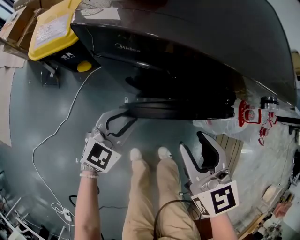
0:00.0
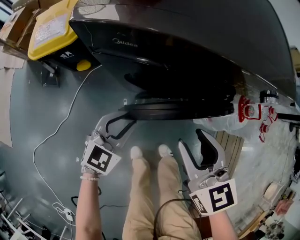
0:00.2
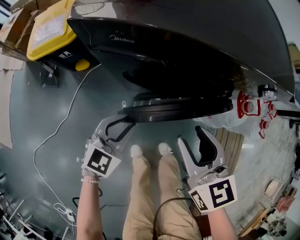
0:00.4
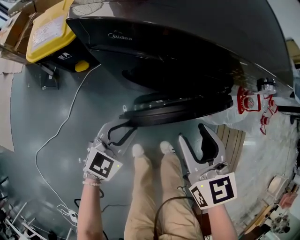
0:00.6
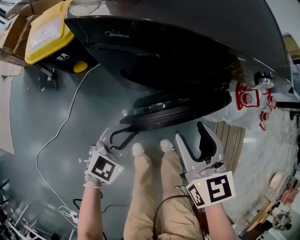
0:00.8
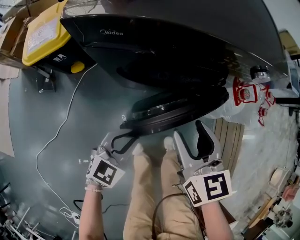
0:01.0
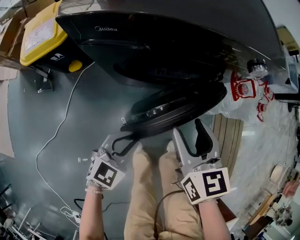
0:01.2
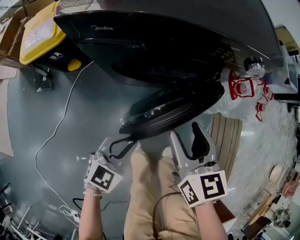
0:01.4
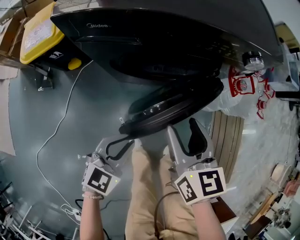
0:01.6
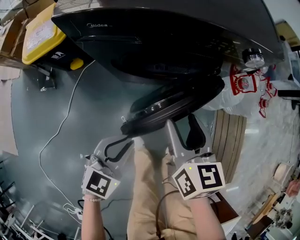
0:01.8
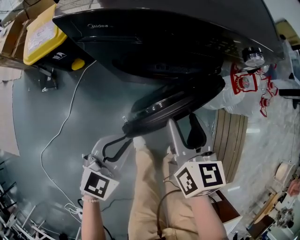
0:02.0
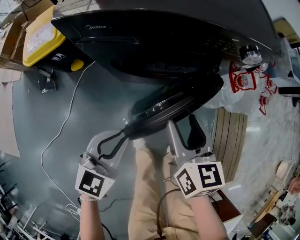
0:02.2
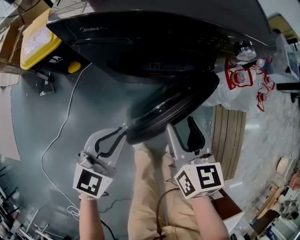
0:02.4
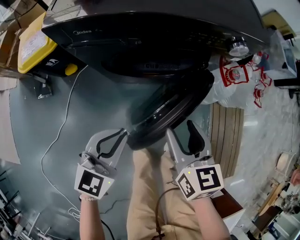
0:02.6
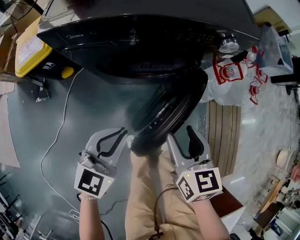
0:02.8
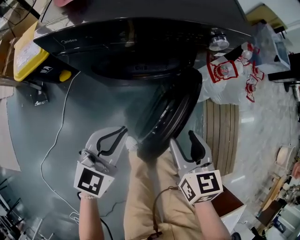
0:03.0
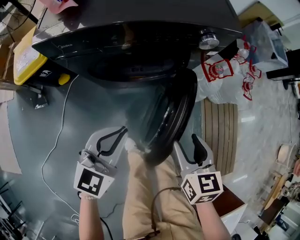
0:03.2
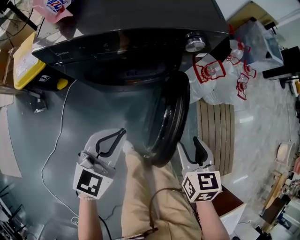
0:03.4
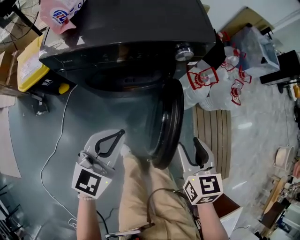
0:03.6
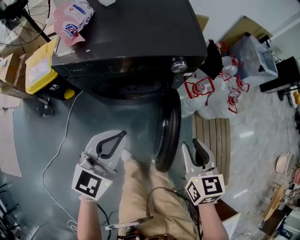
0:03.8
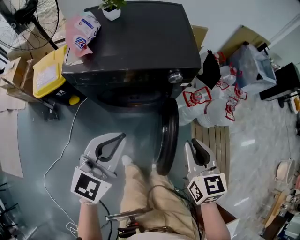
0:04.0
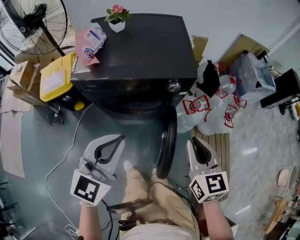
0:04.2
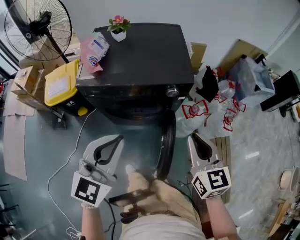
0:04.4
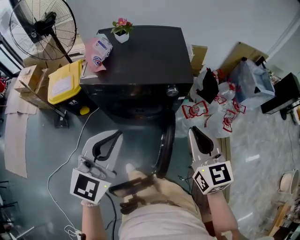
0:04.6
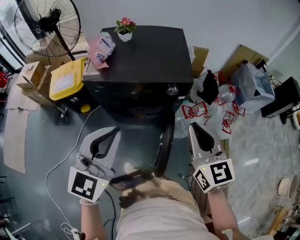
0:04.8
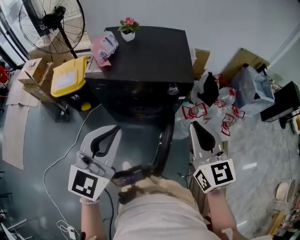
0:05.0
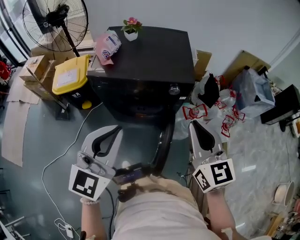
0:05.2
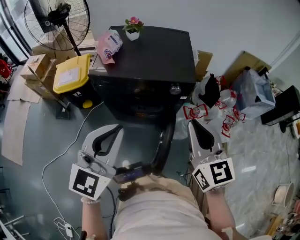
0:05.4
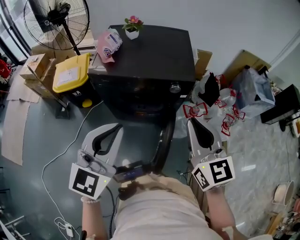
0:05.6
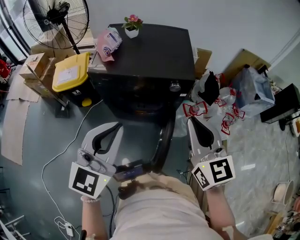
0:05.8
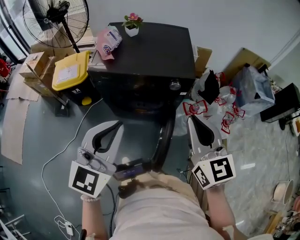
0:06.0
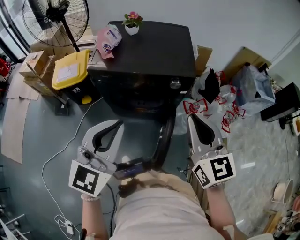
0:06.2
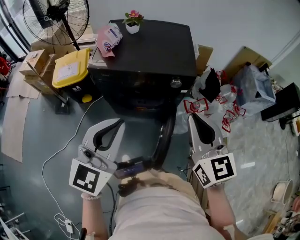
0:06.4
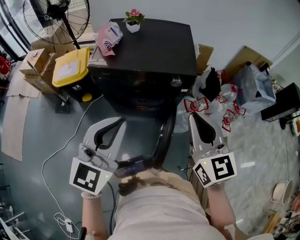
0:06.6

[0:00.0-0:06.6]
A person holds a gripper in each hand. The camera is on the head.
0:00.0 to 0:01.6: The left gripper travels backward and to the right by about 15 cm. Meanwhile the right gripper ends up approximately 5 cm from where it was, and changes its angle by approximately 20 degrees.
0:01.6 to 0:03.2: The left gripper shifts about 15 cm upward and to the right. The right gripper is displaced to the right and backward by roughly 15 cm.
0:03.2 to 0:05.0: Both grippers travel together upward, some 30 cm. The right gripper angles its fingers upward, by some 30 degrees, and closes, while the left gripper turns by approximately 20 degrees.
0:05.0 to 0:06.6: The grippers make only small movements.

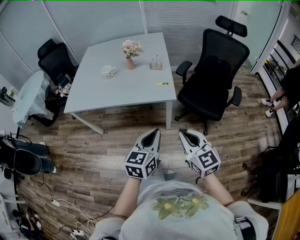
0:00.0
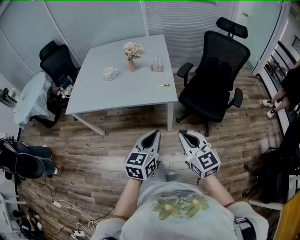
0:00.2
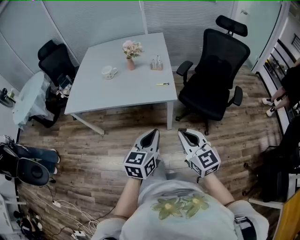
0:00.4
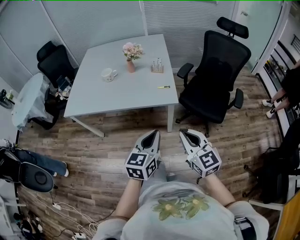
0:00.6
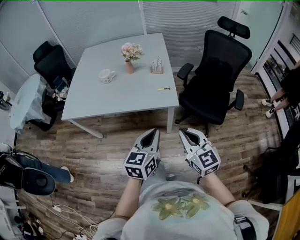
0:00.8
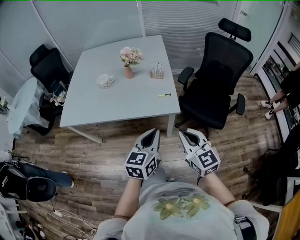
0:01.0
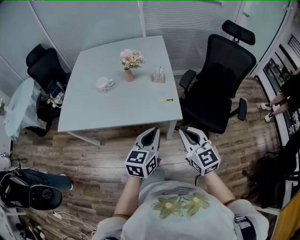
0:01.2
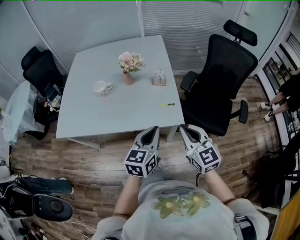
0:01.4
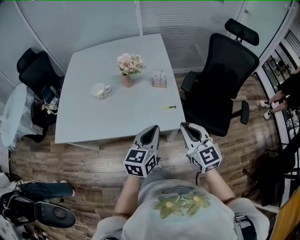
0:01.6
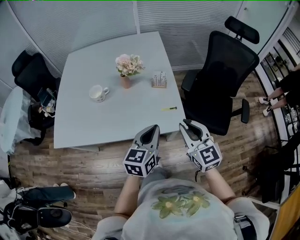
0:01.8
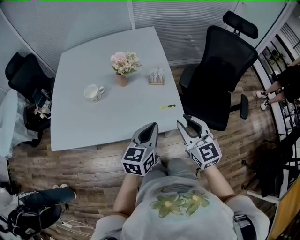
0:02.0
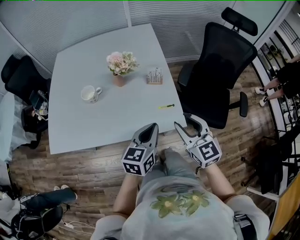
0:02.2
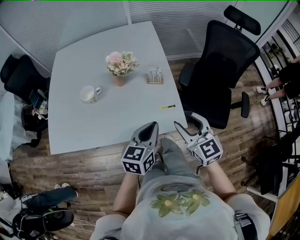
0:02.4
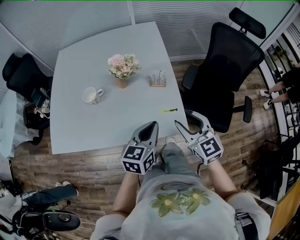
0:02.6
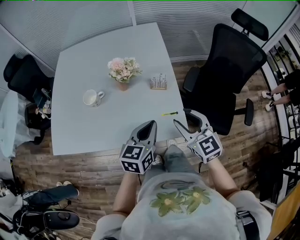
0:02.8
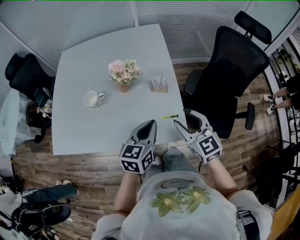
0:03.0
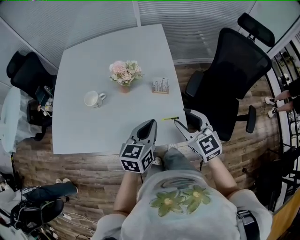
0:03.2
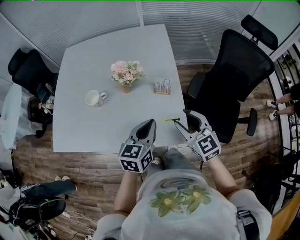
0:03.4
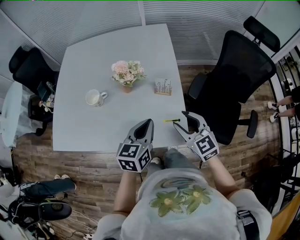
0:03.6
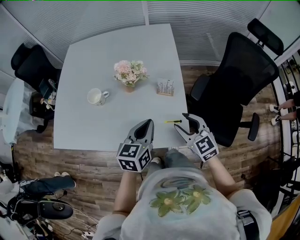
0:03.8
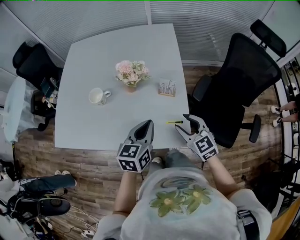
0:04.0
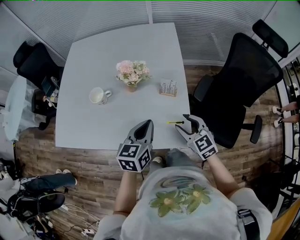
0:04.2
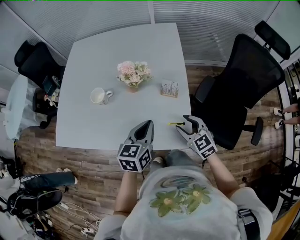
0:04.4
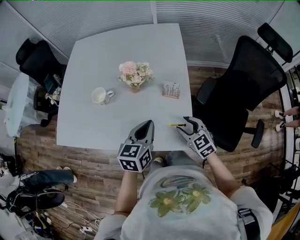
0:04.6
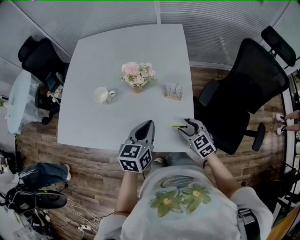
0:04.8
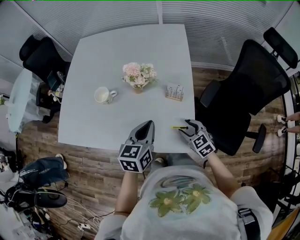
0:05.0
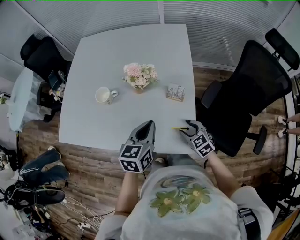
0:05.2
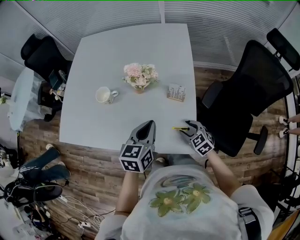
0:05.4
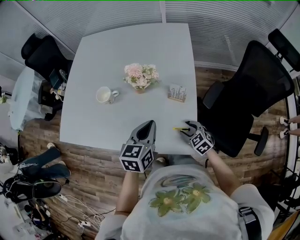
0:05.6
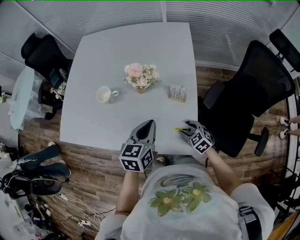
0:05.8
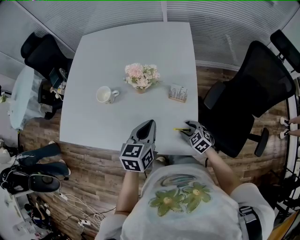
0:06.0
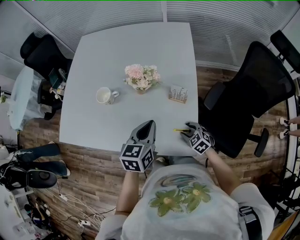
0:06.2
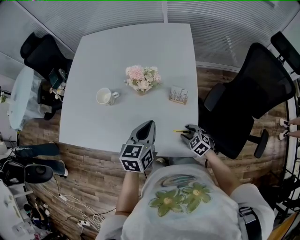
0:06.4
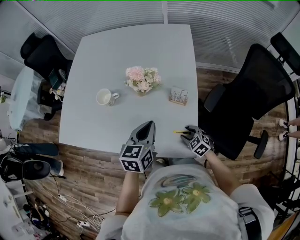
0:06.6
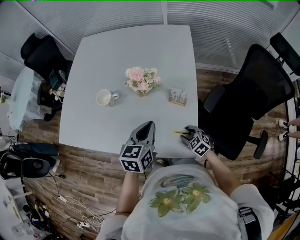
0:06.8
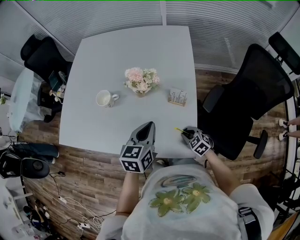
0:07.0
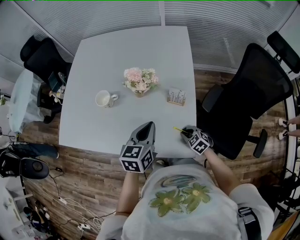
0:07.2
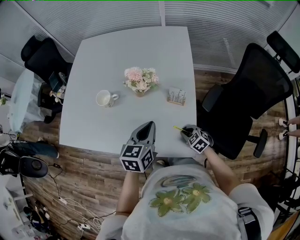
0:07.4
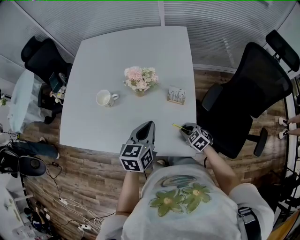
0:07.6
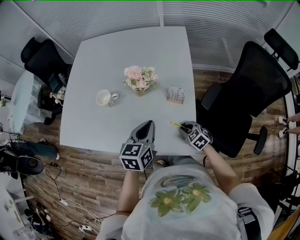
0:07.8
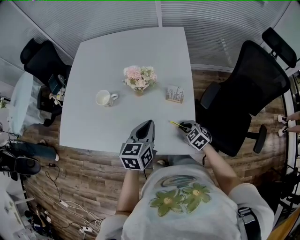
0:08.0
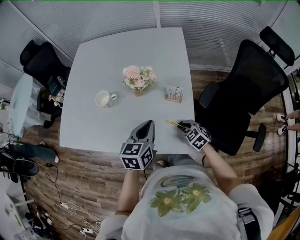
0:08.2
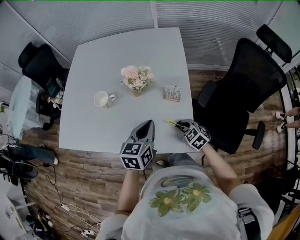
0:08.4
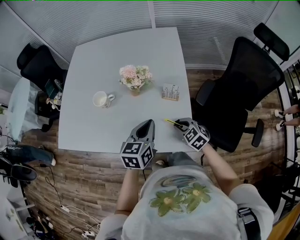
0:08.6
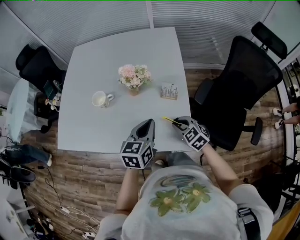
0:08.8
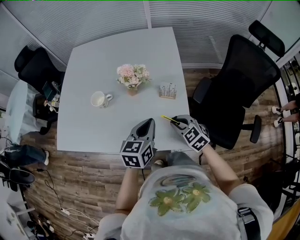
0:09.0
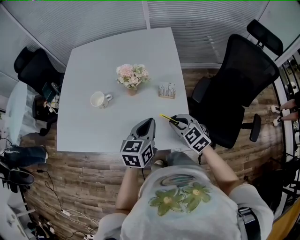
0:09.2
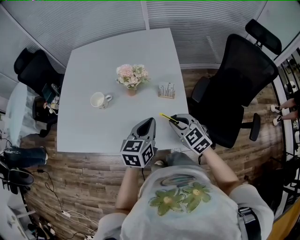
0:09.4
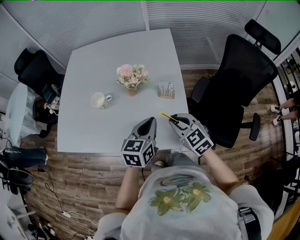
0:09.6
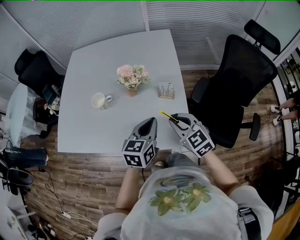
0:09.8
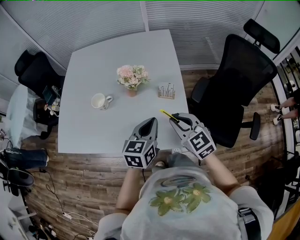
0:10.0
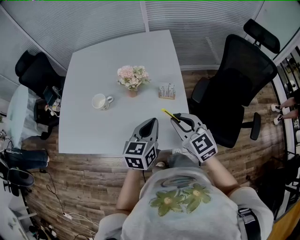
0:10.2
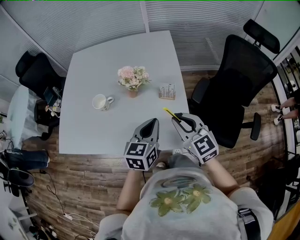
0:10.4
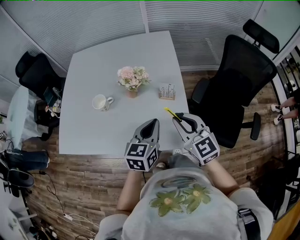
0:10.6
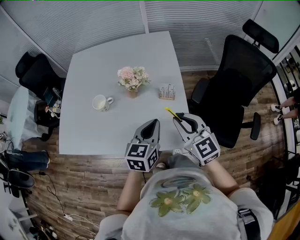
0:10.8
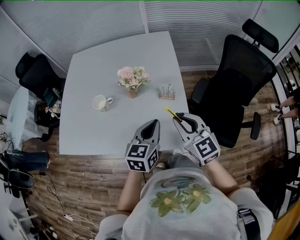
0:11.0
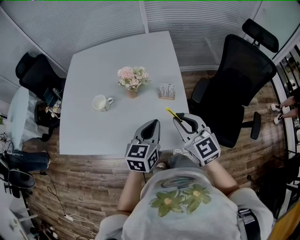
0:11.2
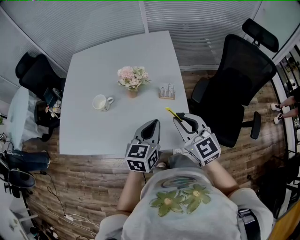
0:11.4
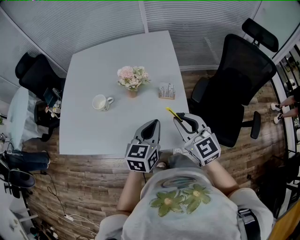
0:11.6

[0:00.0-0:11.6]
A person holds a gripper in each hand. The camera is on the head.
0:00.0 to 0:01.4: Both grippers travel together forward, approximately 25 cm.
0:01.4 to 0:02.8: The two grippers go some 15 cm forward. The right gripper opens its fingers.
0:02.8 to 0:04.4: The right gripper goes roughly 15 cm downward and forward. The left gripper is displaced forward by about 5 cm.
0:04.4 to 0:05.8: The right gripper moves downward, approximately 15 cm, and changes its angle by approximately 20 degrees.
0:05.8 to 0:07.2: The right gripper closes.
0:07.2 to 0:08.8: The right gripper heads upward, covering some 15 cm.
0:08.8 to 0:10.2: The right gripper goes approximately 15 cm upward, and turns by some 20 degrees.
0:10.2 to 0:11.6: The grippers make only small movements.

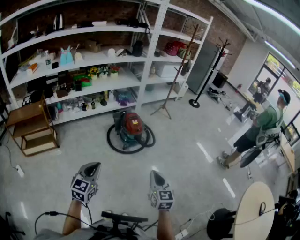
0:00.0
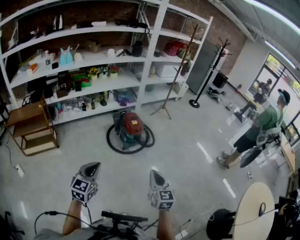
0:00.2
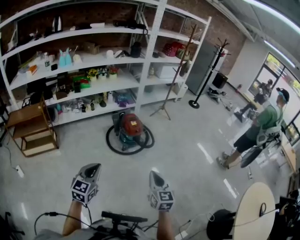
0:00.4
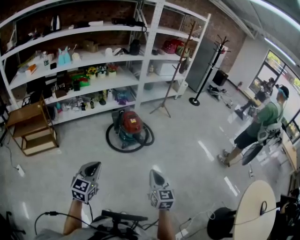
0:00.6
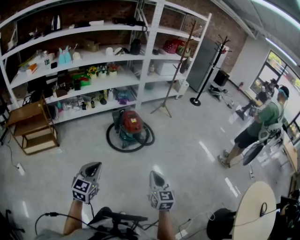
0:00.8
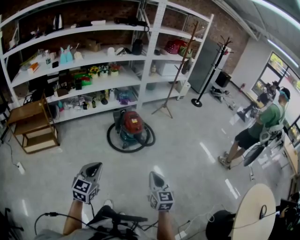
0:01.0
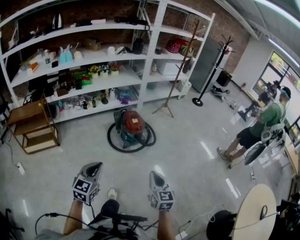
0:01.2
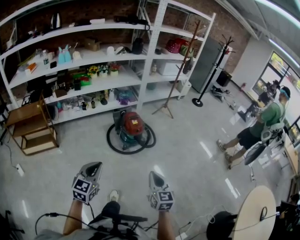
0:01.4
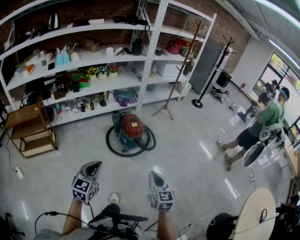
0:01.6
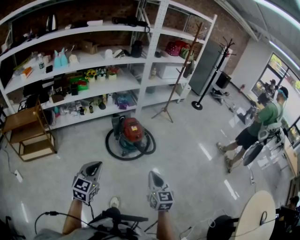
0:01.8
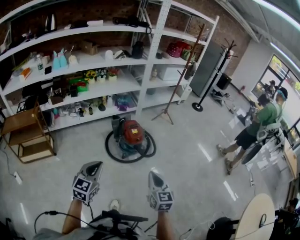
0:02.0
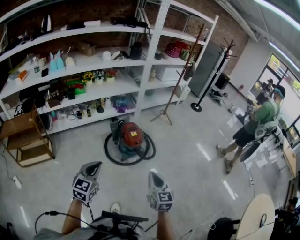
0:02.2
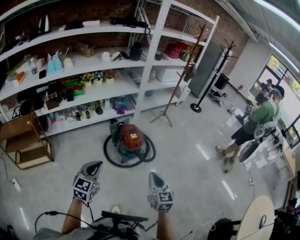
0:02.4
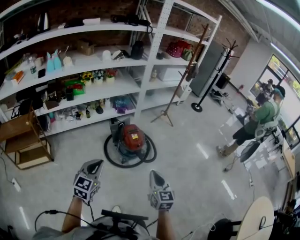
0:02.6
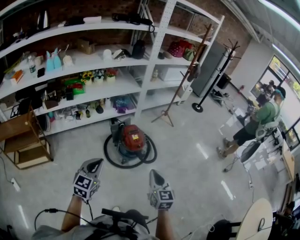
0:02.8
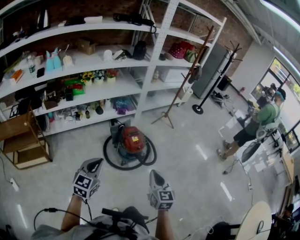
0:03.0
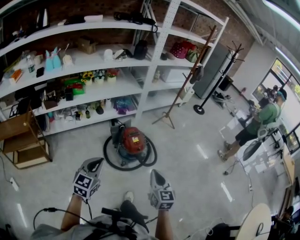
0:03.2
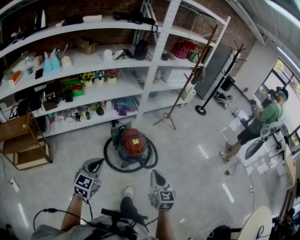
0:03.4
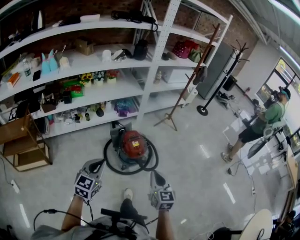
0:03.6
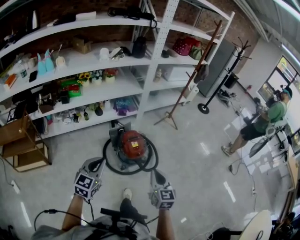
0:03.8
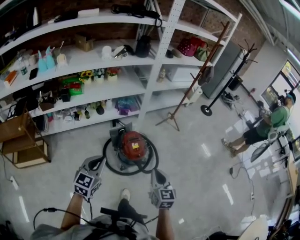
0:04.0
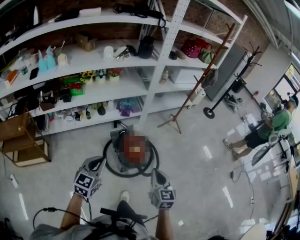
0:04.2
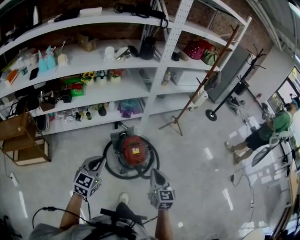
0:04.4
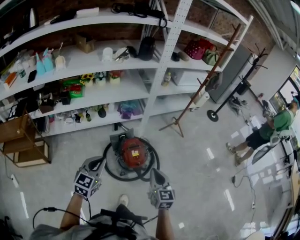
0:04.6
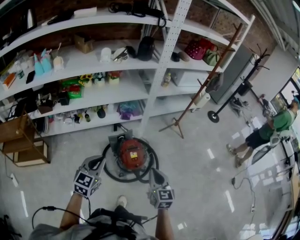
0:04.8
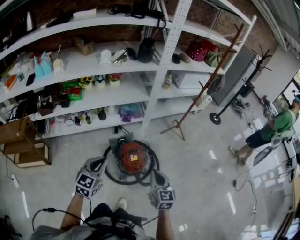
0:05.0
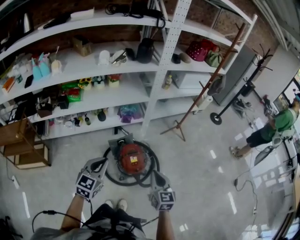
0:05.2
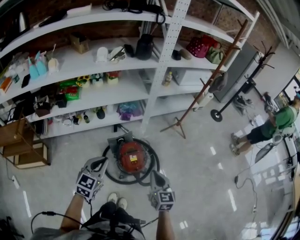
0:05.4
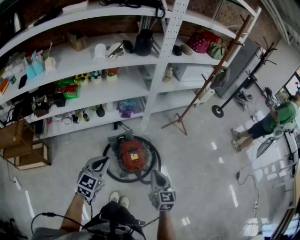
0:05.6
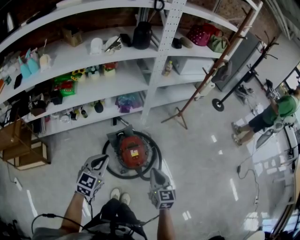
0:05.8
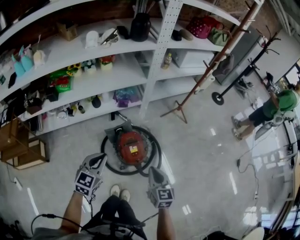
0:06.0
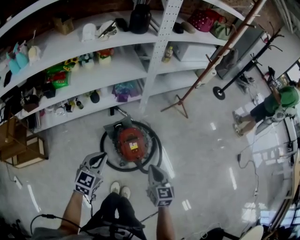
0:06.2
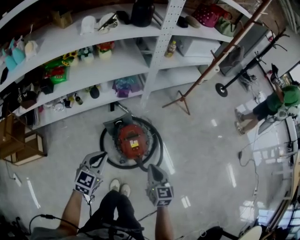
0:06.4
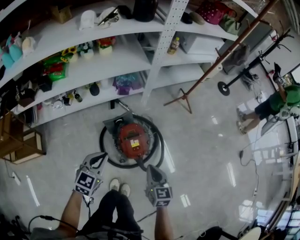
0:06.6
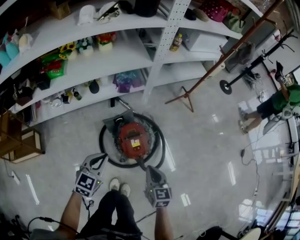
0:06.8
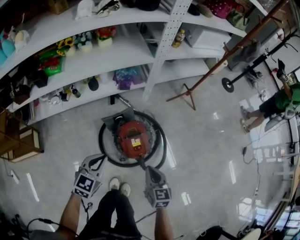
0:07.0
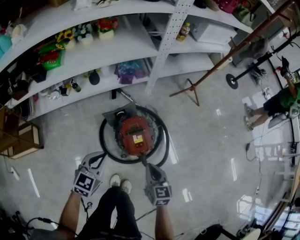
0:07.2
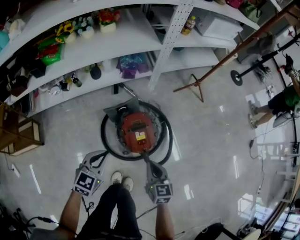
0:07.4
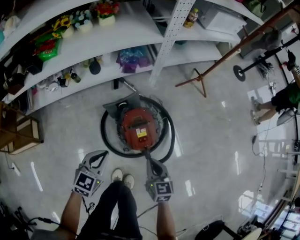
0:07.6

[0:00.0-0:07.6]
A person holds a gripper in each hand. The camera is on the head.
0:00.0 to 0:01.6: The two grippers go some 10 cm forward.
0:01.6 to 0:03.0: Both grippers travel together forward, roughly 20 cm.
0:03.0 to 0:04.6: The two grippers go roughly 25 cm forward.
0:04.6 to 0:06.0: The grippers both shift forward and downward by roughly 15 cm.
0:06.0 to 0:07.6: Both grippers travel together downward, about 25 cm.
